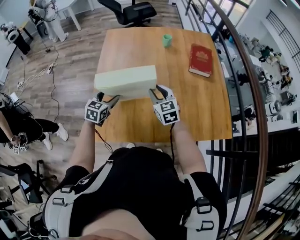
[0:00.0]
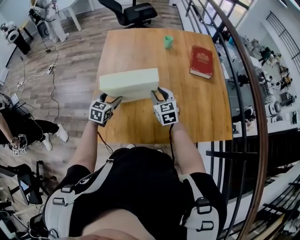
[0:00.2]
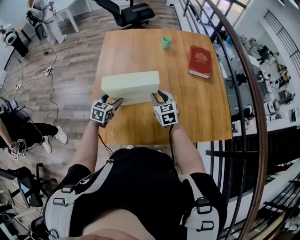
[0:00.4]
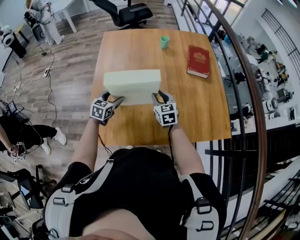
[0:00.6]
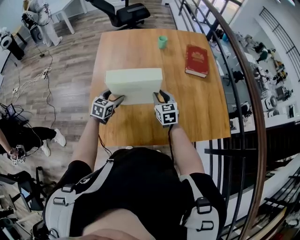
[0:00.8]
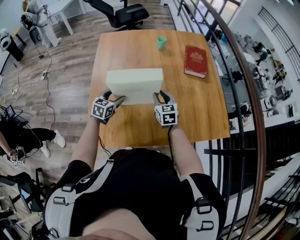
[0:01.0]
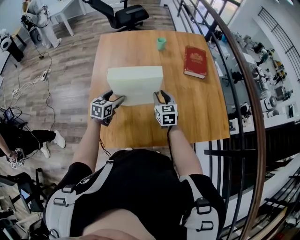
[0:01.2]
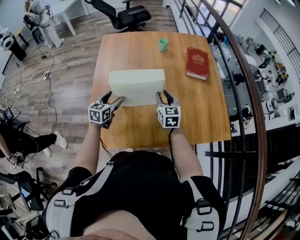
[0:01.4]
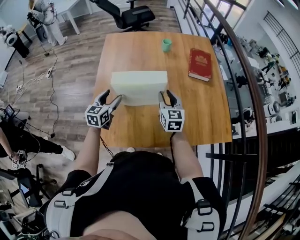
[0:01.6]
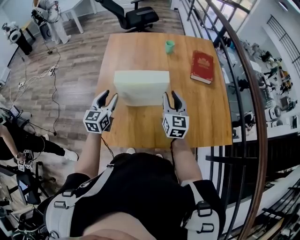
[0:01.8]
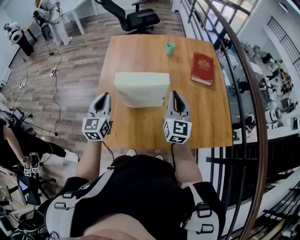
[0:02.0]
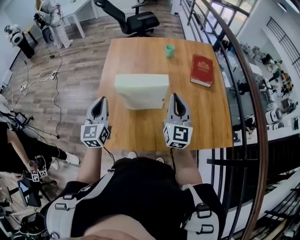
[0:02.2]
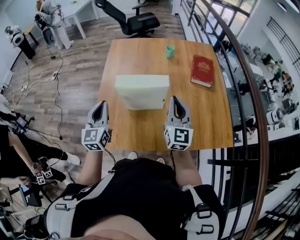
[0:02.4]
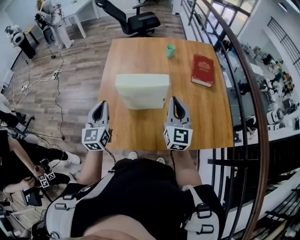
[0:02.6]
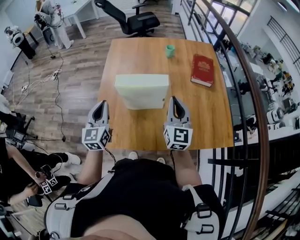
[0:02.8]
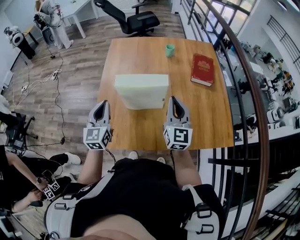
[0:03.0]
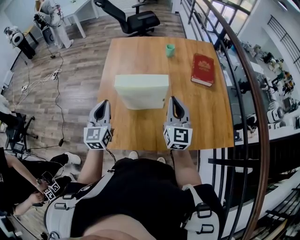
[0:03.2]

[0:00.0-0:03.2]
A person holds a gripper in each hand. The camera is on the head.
0:00.0 to 0:01.6: The right gripper shifts about 5 cm to the right.
0:01.6 to 0:03.2: Both grippers travel together upward and backward, some 15 cm. The left gripper turns by some 20 degrees, and closes up. Meanwhile the right gripper swivels roughly 20 degrees, and closes.

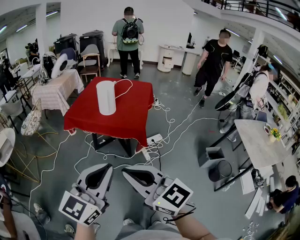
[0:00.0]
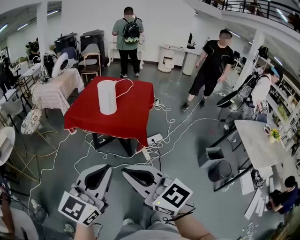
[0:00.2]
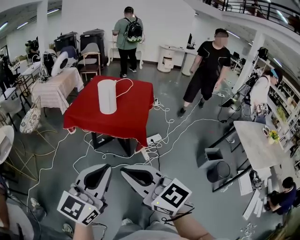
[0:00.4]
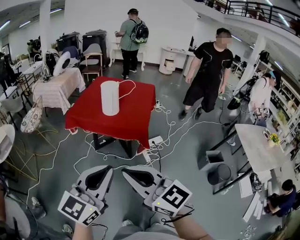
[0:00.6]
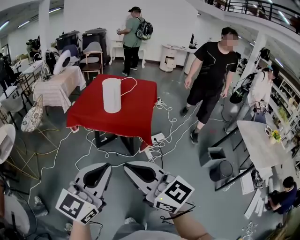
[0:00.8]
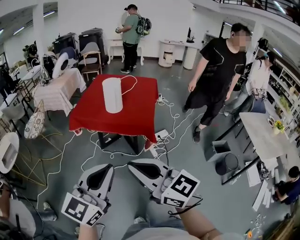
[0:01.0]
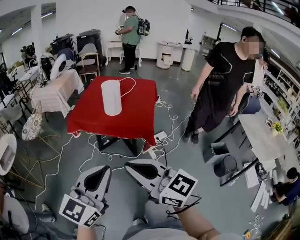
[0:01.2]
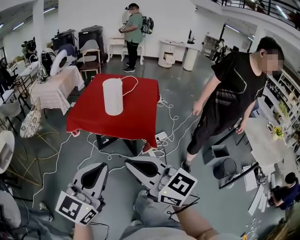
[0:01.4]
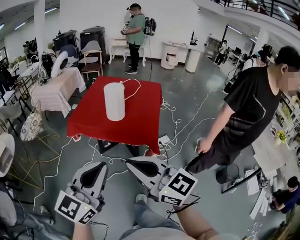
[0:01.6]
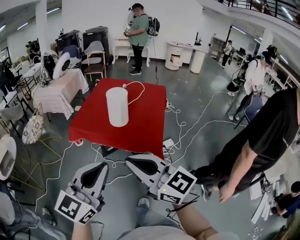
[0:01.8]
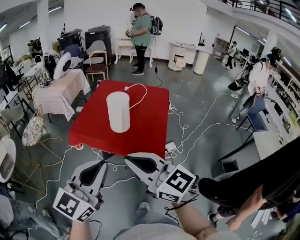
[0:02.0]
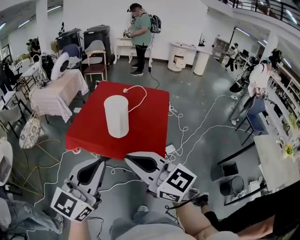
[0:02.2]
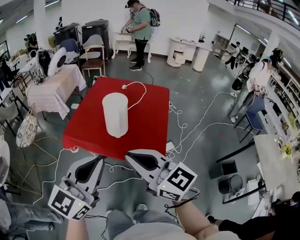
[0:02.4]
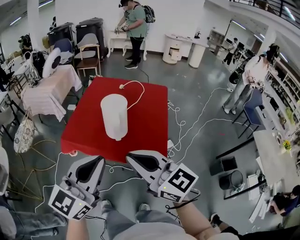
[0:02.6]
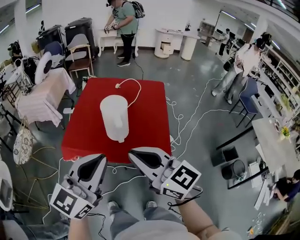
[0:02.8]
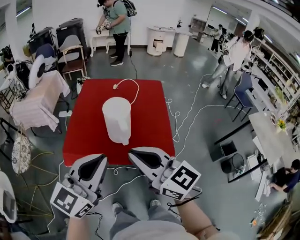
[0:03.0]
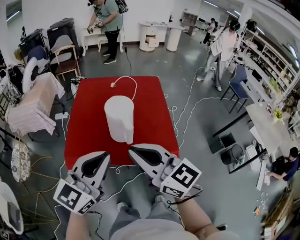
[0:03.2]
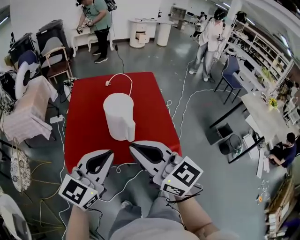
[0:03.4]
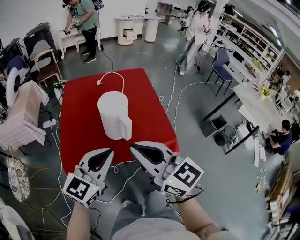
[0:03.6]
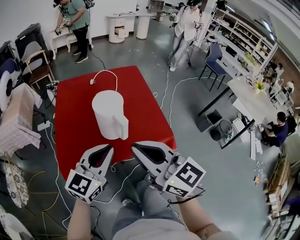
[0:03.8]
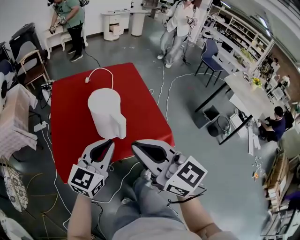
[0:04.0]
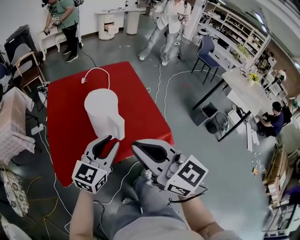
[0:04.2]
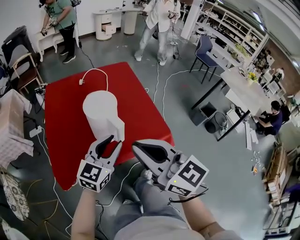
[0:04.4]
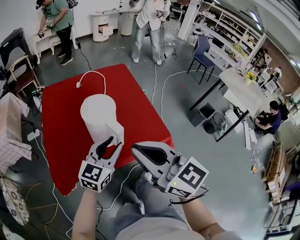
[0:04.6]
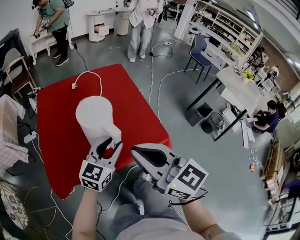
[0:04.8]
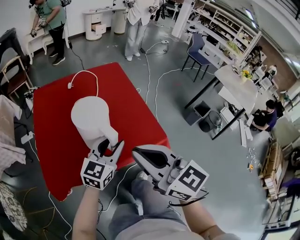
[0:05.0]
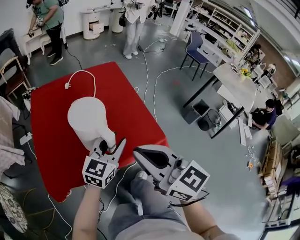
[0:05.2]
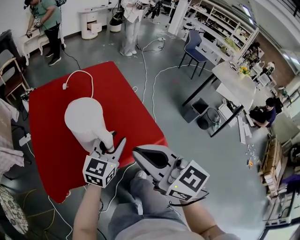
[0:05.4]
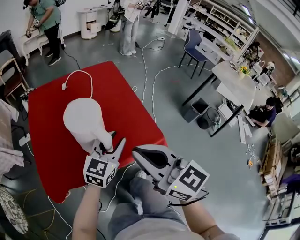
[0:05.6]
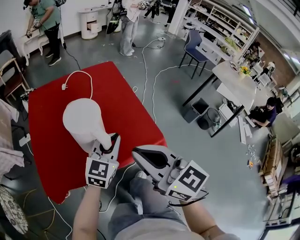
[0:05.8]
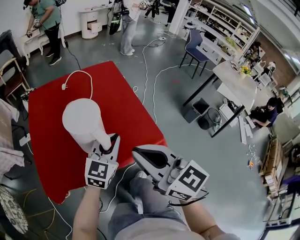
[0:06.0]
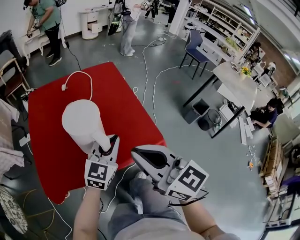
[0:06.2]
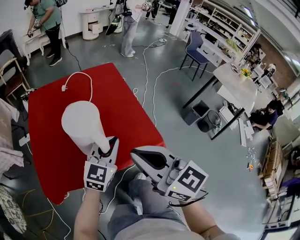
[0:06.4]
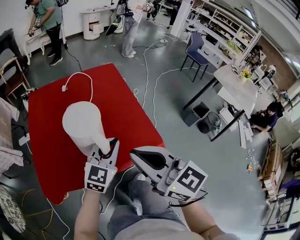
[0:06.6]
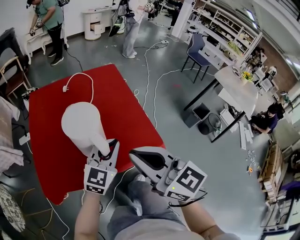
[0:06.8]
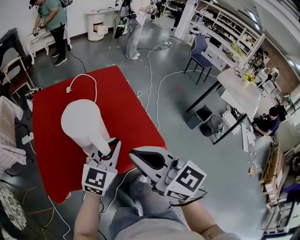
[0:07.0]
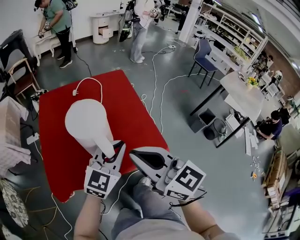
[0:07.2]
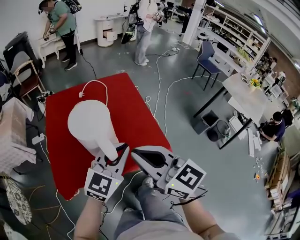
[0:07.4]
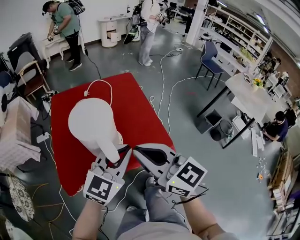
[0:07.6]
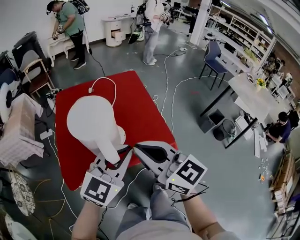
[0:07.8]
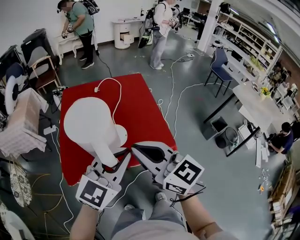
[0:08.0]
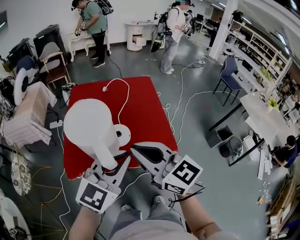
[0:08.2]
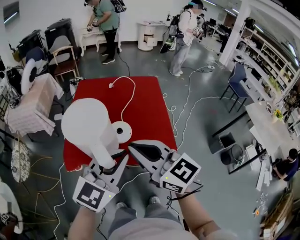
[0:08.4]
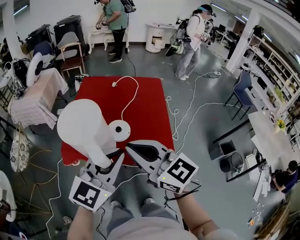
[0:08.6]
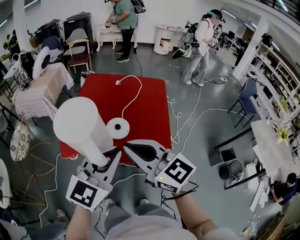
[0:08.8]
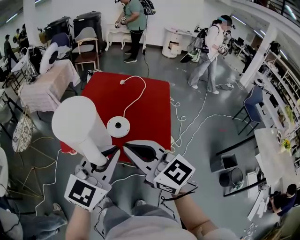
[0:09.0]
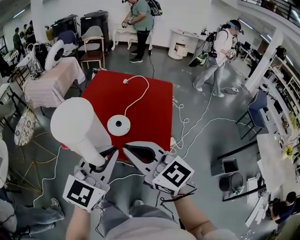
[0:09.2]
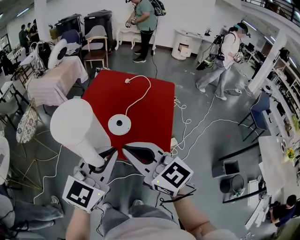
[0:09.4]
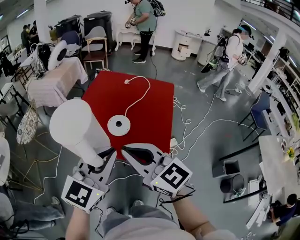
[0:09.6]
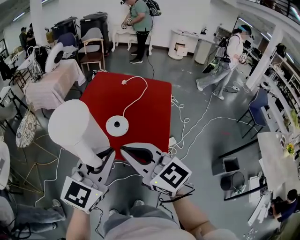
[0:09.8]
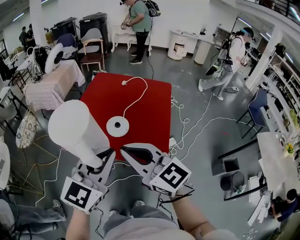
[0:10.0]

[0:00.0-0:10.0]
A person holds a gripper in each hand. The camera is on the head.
0:00.0 to 0:01.4: The left gripper heads to the left and forward, covering some 10 cm. Meanwhile the right gripper heads forward, covering about 10 cm.
0:01.4 to 0:02.8: The two grippers go some 30 cm forward.
0:02.8 to 0:04.2: The right gripper shifts by about 5 cm, and rotates about 30 degrees; the left gripper moves downward, roughly 15 cm, changes its angle by roughly 30 degrees, and opens its fingers.
0:04.2 to 0:05.8: The right gripper ends up about 10 cm from where it was. The left gripper moves forward, to the right and downward, approximately 15 cm.
0:05.8 to 0:07.2: The left gripper heads upward, covering some 5 cm.
0:07.2 to 0:08.6: The right gripper heads backward, covering about 5 cm, and changes its angle by about 20 degrees; the left gripper heads backward and upward, covering approximately 20 cm.
0:08.6 to 0:10.0: The right gripper changes place by some 5 cm.

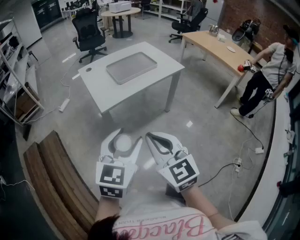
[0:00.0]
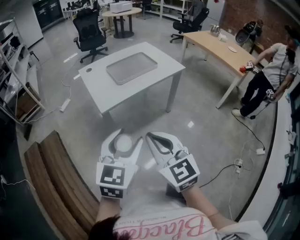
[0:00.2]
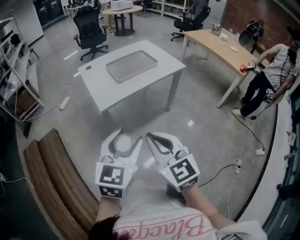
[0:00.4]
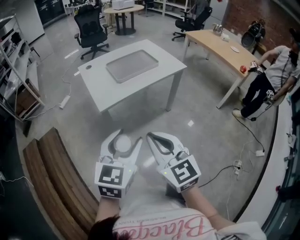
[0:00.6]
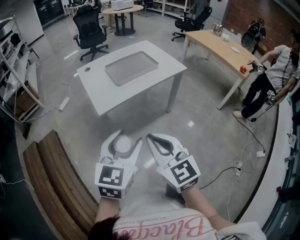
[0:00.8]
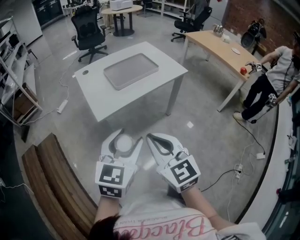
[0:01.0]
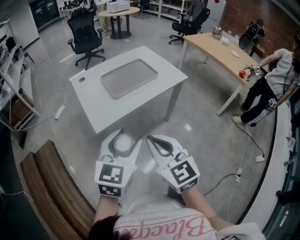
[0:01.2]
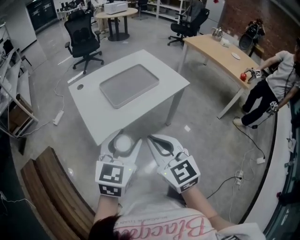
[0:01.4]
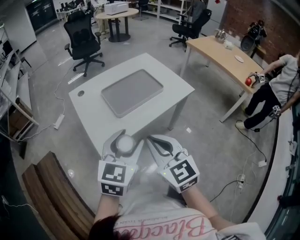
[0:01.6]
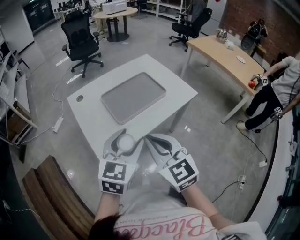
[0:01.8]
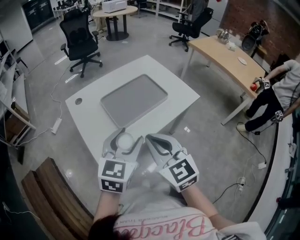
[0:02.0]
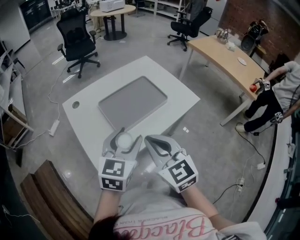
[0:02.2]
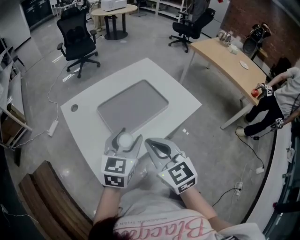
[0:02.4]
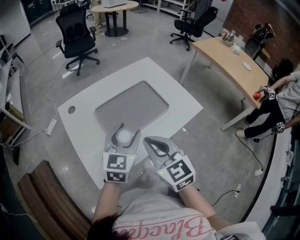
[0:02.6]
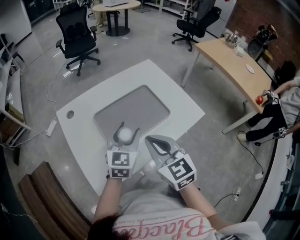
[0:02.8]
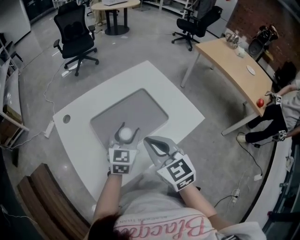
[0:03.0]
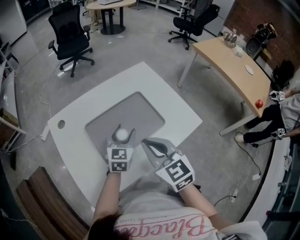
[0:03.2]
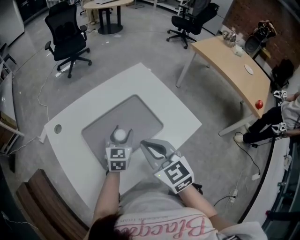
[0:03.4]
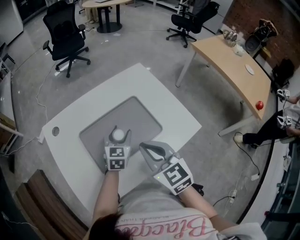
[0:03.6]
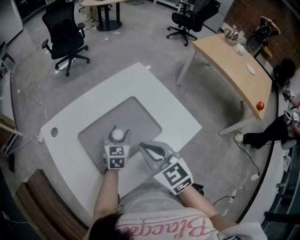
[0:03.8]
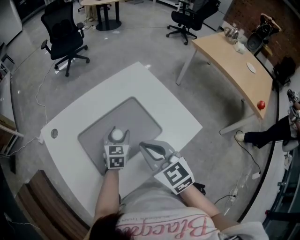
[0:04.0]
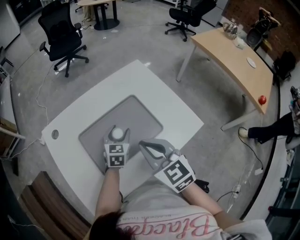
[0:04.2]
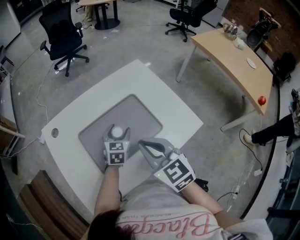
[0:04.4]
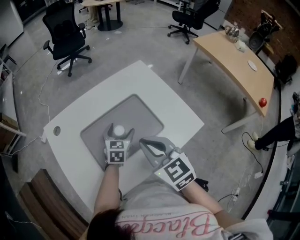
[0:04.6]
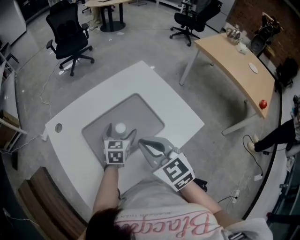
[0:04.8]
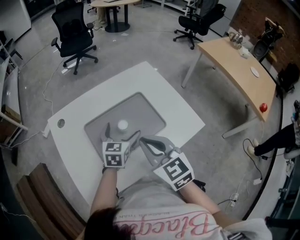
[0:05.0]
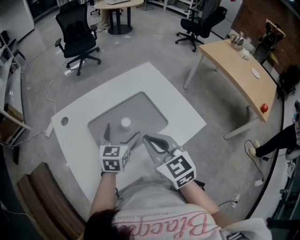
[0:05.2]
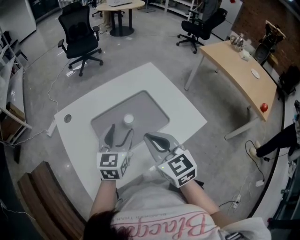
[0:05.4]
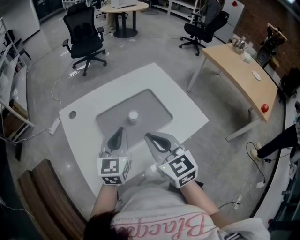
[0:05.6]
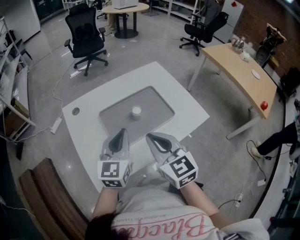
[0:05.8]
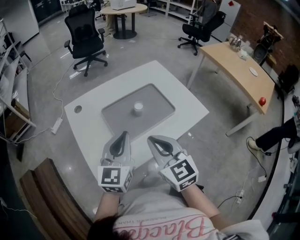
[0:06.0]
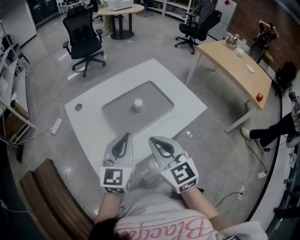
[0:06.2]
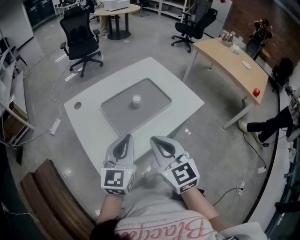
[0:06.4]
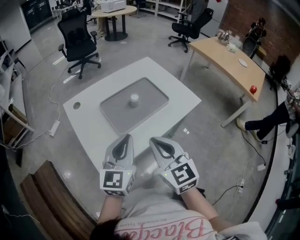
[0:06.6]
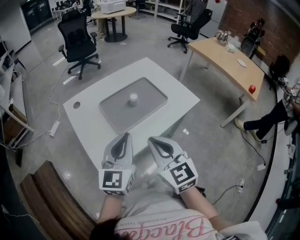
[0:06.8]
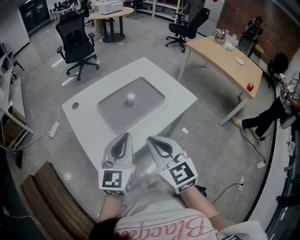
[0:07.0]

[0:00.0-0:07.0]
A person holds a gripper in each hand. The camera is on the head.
0:00.0 to 0:01.4: The two grippers go roughly 15 cm forward.
0:01.4 to 0:02.8: The grippers both shift forward by about 25 cm.
0:02.8 to 0:04.2: The left gripper is displaced downward and forward by roughly 20 cm. Meanwhile the right gripper heads forward, covering approximately 5 cm.
0:04.2 to 0:05.6: The right gripper moves some 5 cm. The left gripper heads upward and backward, covering roughly 20 cm, turns by about 20 degrees, and closes.
0:05.6 to 0:07.0: The right gripper is displaced backward by roughly 10 cm; the left gripper is displaced backward and upward by roughly 15 cm.

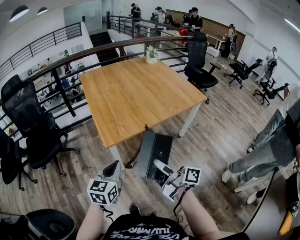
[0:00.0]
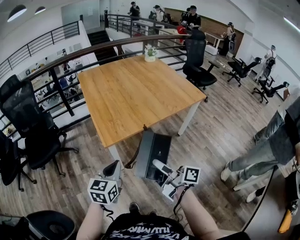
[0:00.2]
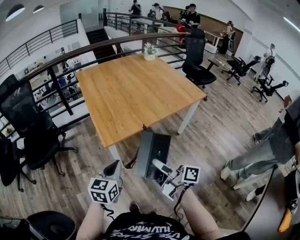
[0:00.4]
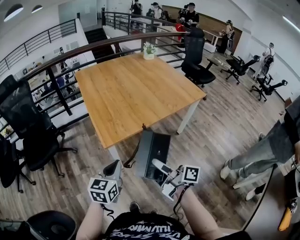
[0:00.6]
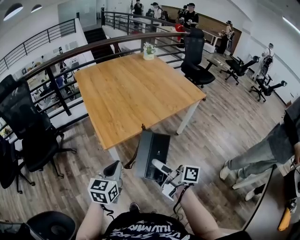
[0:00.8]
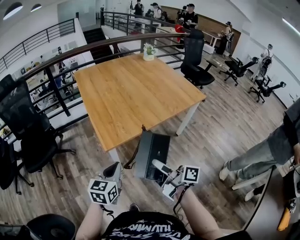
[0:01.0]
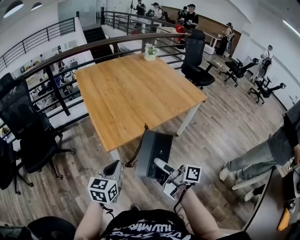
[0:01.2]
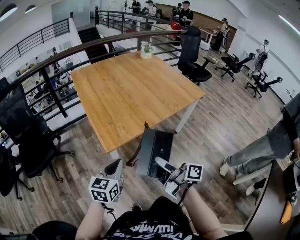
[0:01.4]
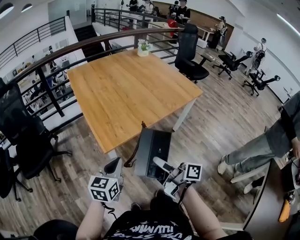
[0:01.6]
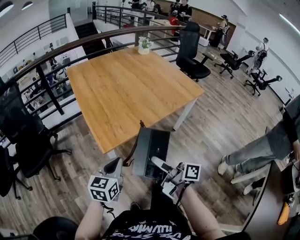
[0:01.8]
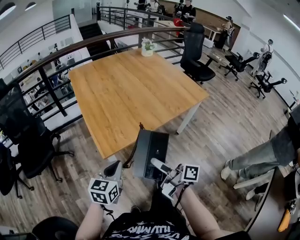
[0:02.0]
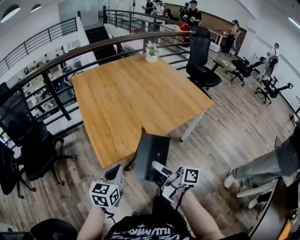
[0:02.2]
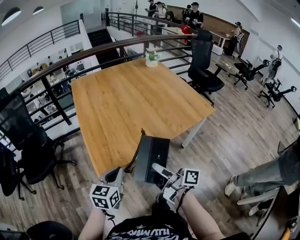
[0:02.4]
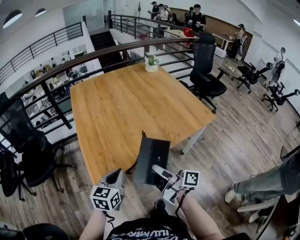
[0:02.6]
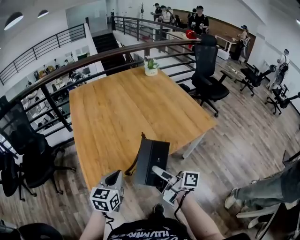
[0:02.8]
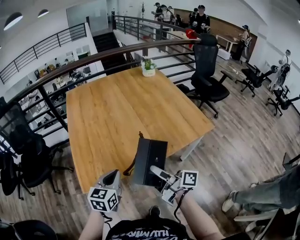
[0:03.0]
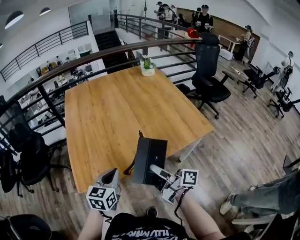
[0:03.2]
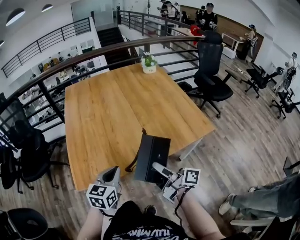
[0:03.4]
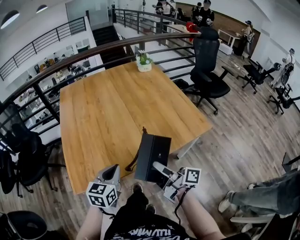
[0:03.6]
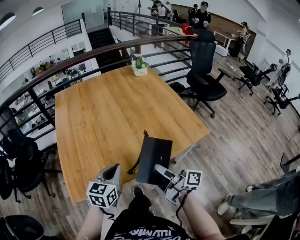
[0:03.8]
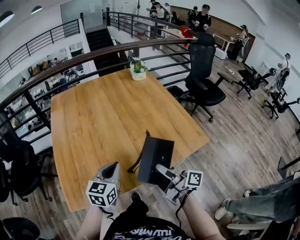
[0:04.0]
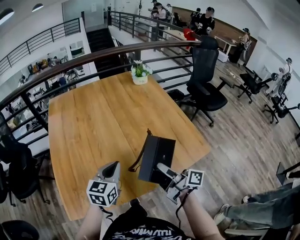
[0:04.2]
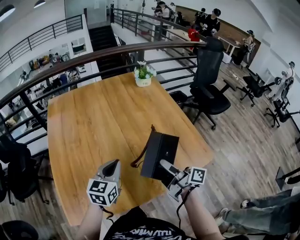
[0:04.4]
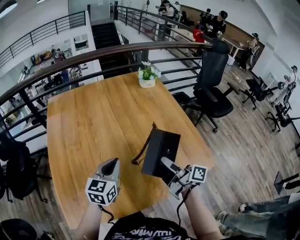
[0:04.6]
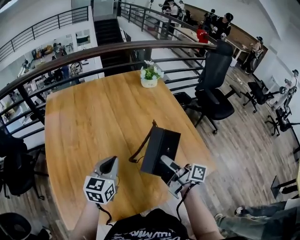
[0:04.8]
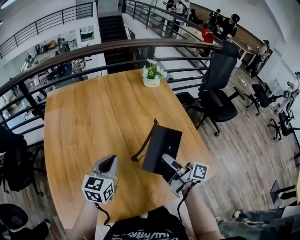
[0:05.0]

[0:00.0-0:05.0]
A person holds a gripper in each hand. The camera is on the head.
0:00.0 to 0:01.6: Both grippers move forward, some 5 cm.
0:01.6 to 0:03.4: Both grippers travel together to the right and forward, some 35 cm.
0:03.4 to 0:05.0: The grippers both shift forward by about 30 cm.
